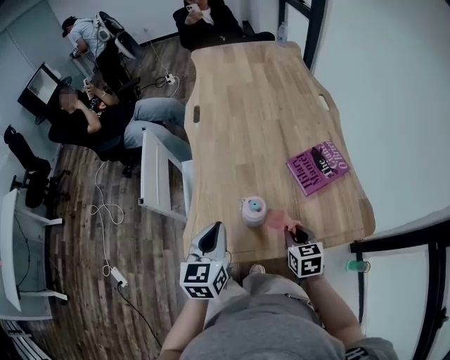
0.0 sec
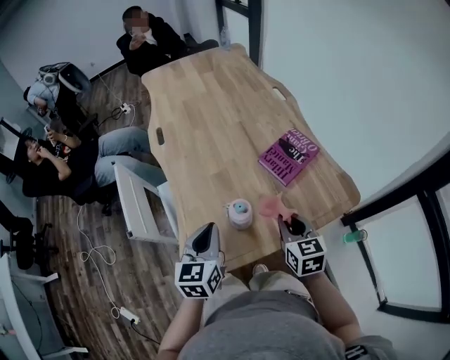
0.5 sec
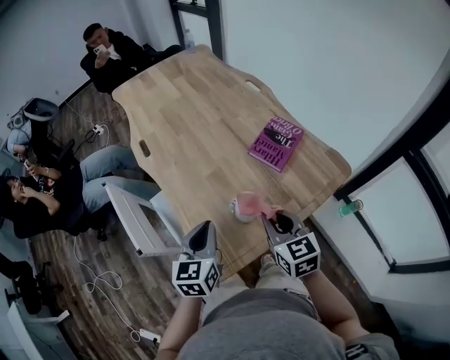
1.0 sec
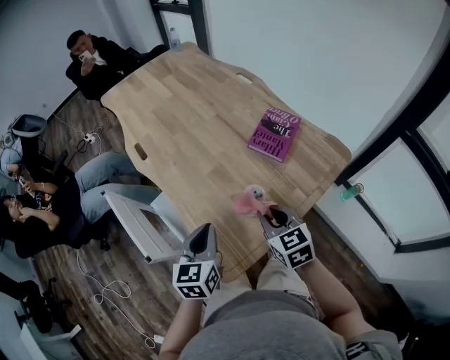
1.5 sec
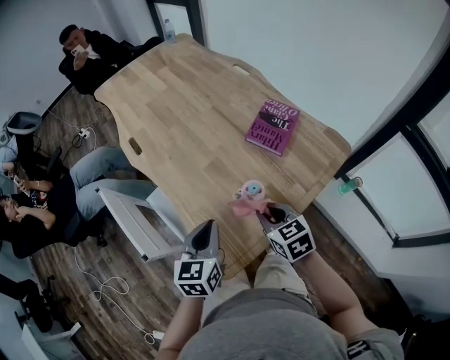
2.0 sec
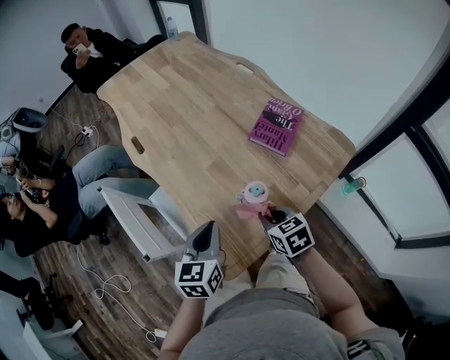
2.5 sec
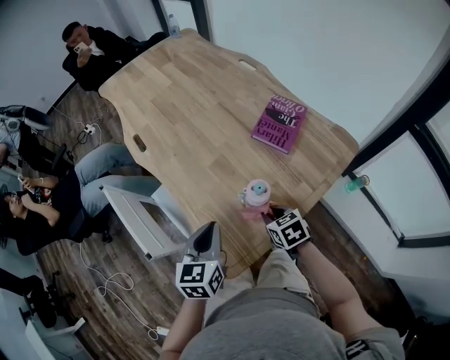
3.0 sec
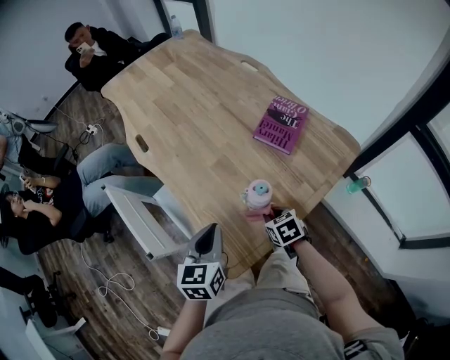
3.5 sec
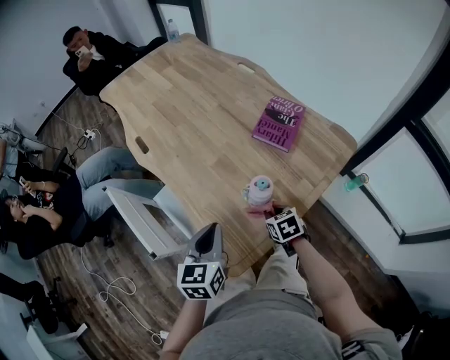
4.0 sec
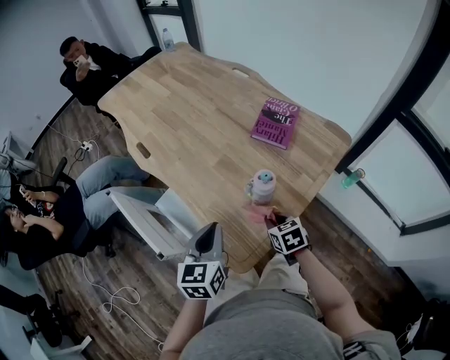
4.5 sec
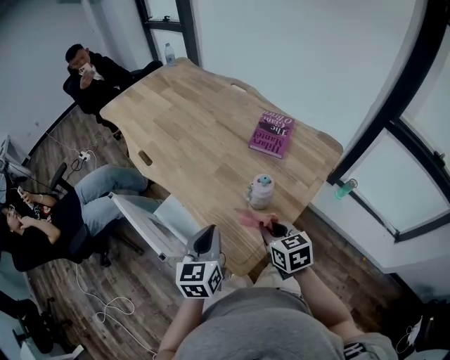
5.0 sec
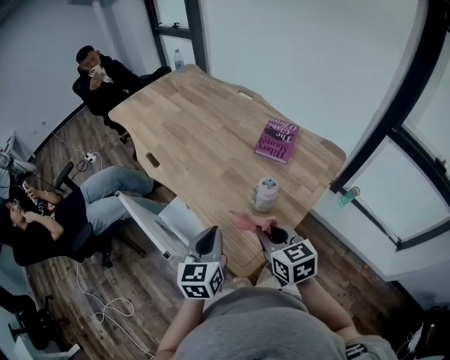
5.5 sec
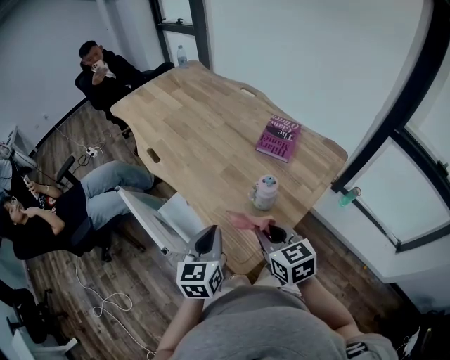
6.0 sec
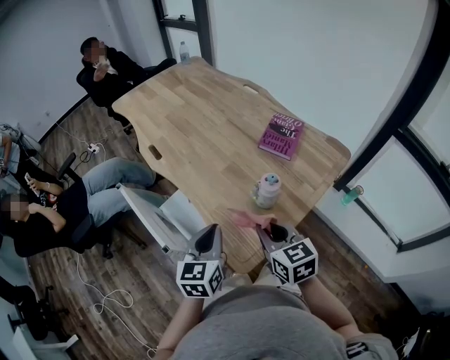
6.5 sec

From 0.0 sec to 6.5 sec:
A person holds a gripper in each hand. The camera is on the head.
From 0.0 sec to 2.0 sec: The right gripper ends up some 15 cm from where it was. The left gripper moves approximately 5 cm, and rotates approximately 30 degrees.
From 2.0 sec to 4.5 sec: The left gripper changes place by about 5 cm, while the right gripper moves downward, approximately 10 cm.
From 4.5 sec to 6.5 sec: The right gripper moves upward and to the left, some 20 cm, and turns by about 30 degrees.

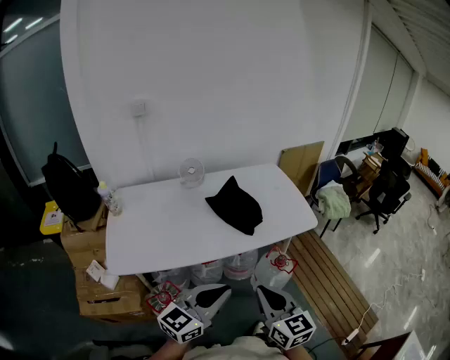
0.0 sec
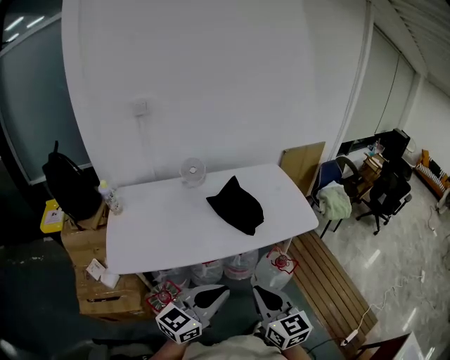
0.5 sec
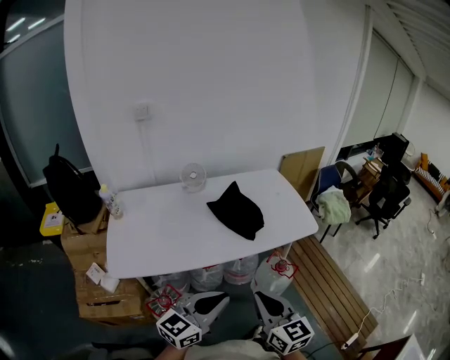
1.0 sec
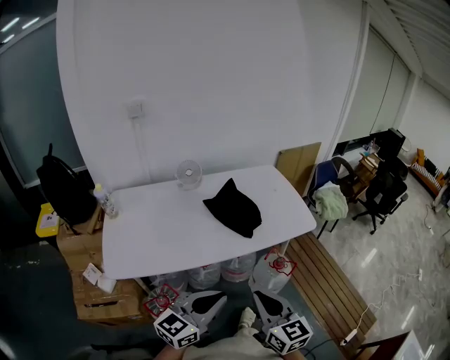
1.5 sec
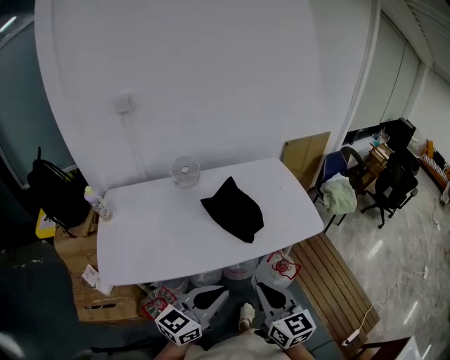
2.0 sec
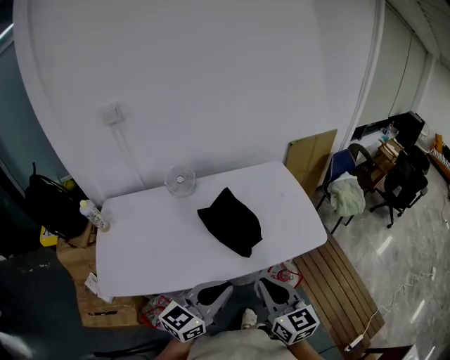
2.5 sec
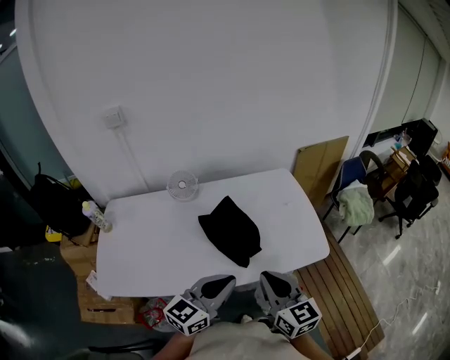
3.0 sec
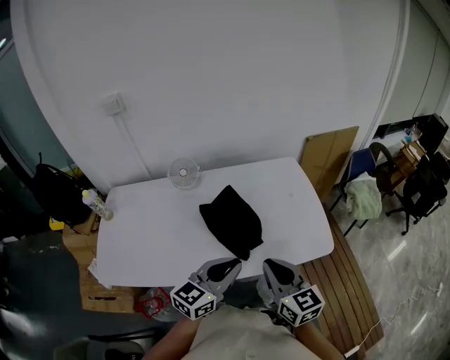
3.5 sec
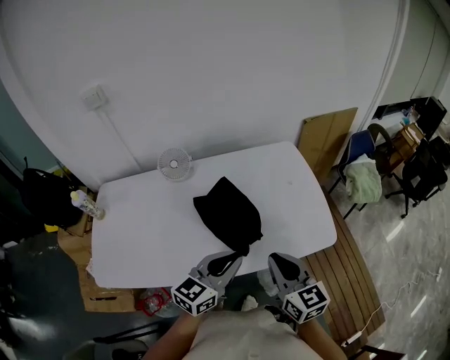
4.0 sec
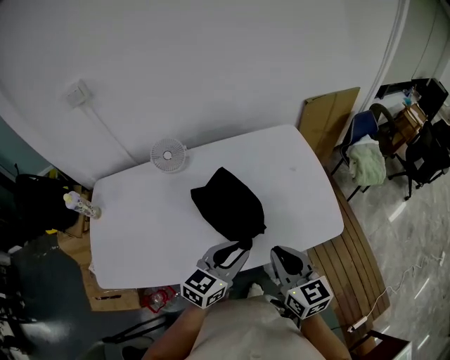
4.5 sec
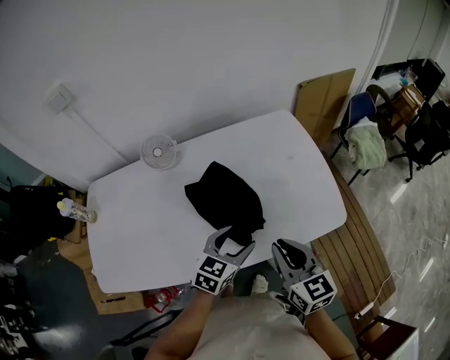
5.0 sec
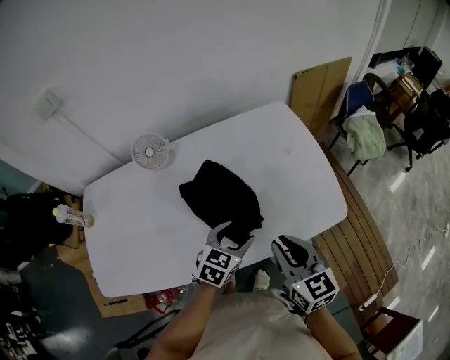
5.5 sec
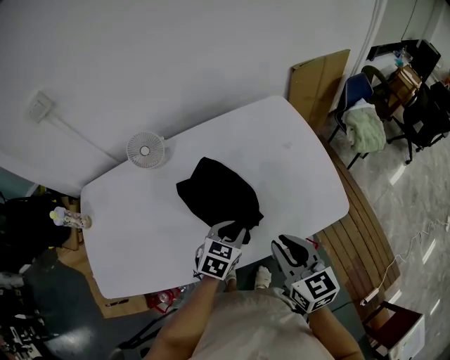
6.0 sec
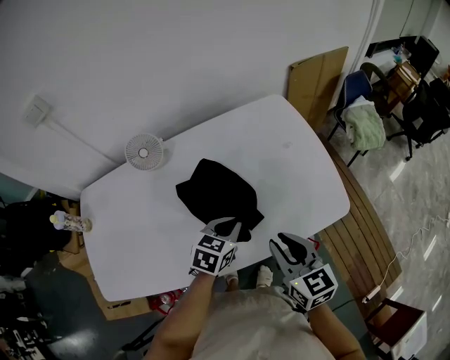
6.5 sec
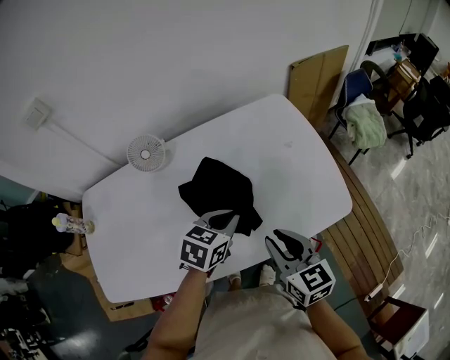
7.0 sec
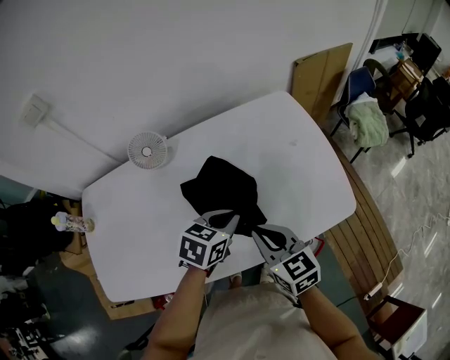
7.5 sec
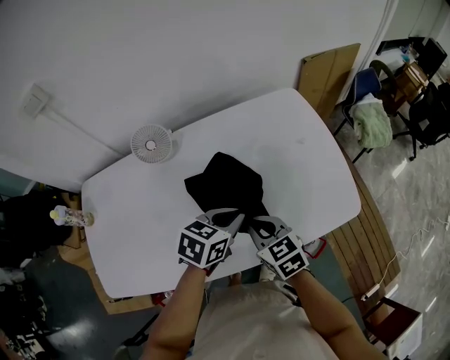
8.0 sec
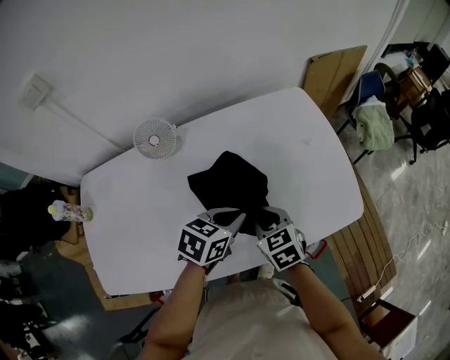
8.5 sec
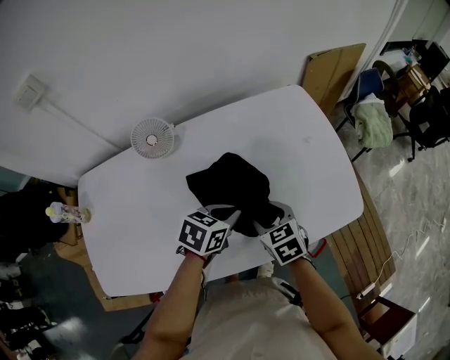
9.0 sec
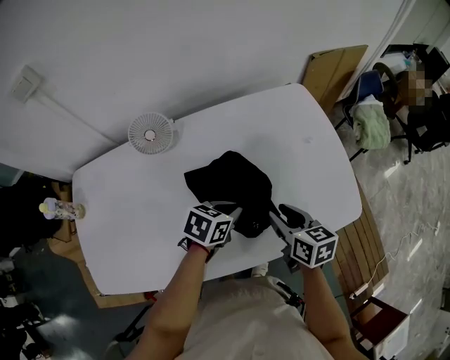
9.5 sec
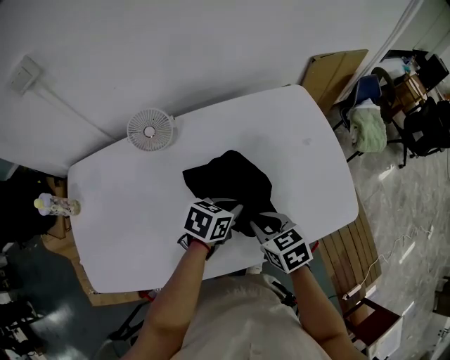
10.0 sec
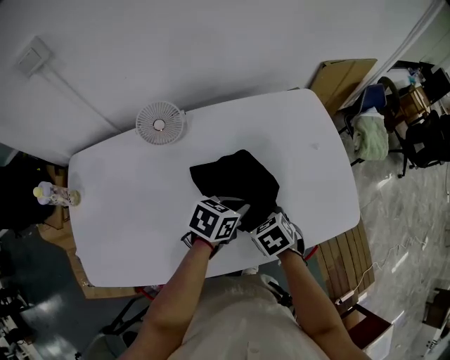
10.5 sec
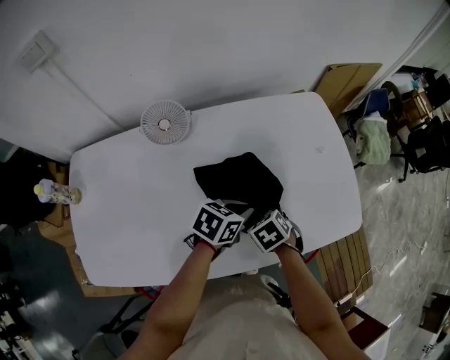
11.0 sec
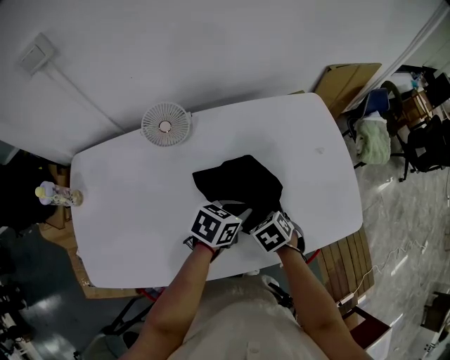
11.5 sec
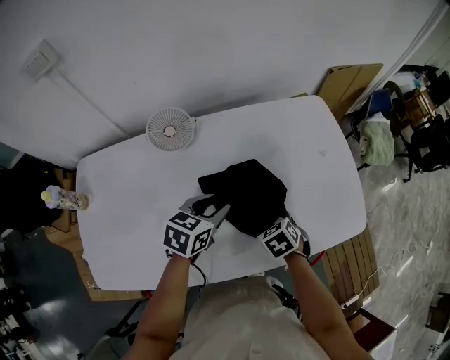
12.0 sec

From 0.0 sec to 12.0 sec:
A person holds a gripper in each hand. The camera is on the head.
From 0.0 sec to 2.0 sec: The grippers both shift forward by about 10 cm.
From 2.0 sec to 4.0 sec: The two grippers go approximately 25 cm forward.
From 4.0 sec to 6.0 sec: The left gripper shifts roughly 20 cm downward and forward, tilts its fingers some 30 degrees downward, and opens, then closes again. Meanwhile the right gripper travels downward by some 5 cm.
From 6.0 sec to 8.0 sec: The left gripper heads upward, covering roughly 5 cm. The right gripper goes approximately 15 cm to the left, downward and forward, and rotates about 20 degrees.
From 8.0 sec to 10.0 sec: The right gripper opens and closes again, while the left gripper moves downward, some 5 cm.
From 10.0 sec to 12.0 sec: The right gripper is displaced downward by some 10 cm, and rotates some 30 degrees, while the left gripper goes roughly 10 cm to the left, and opens up.

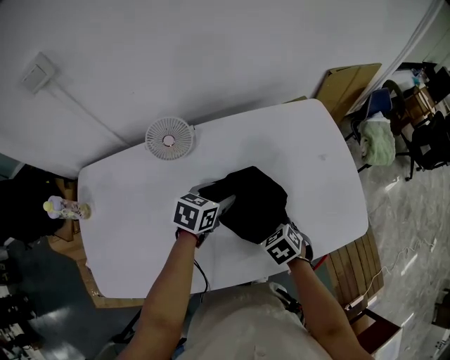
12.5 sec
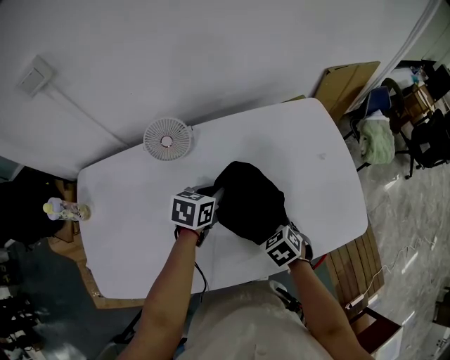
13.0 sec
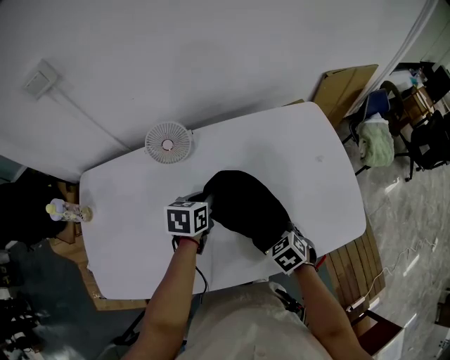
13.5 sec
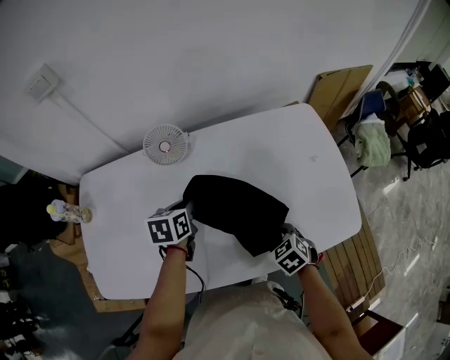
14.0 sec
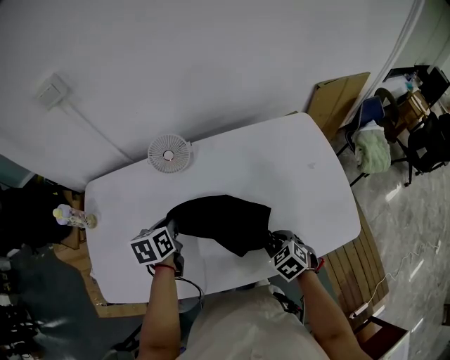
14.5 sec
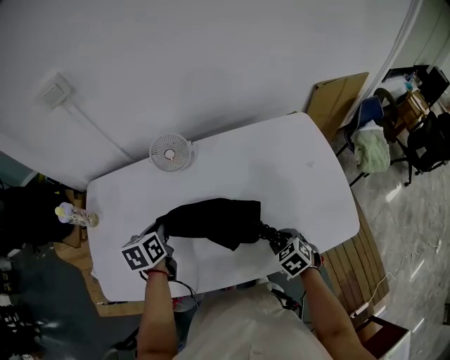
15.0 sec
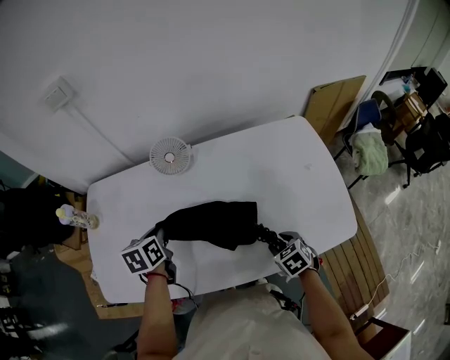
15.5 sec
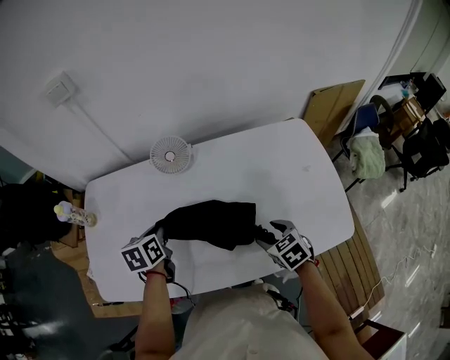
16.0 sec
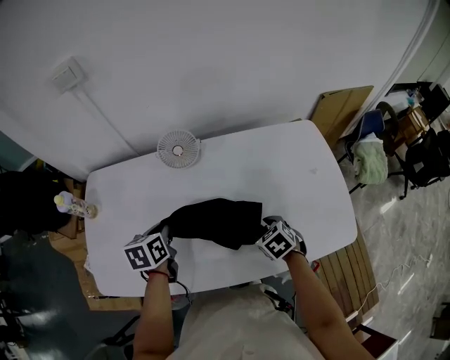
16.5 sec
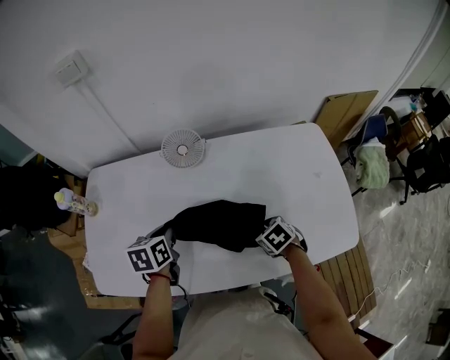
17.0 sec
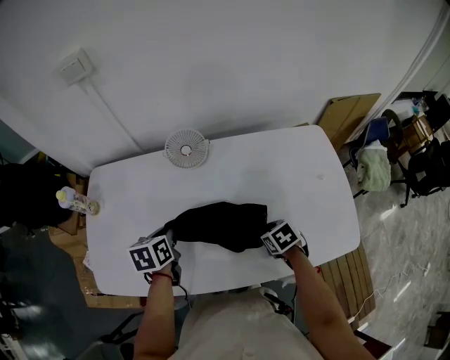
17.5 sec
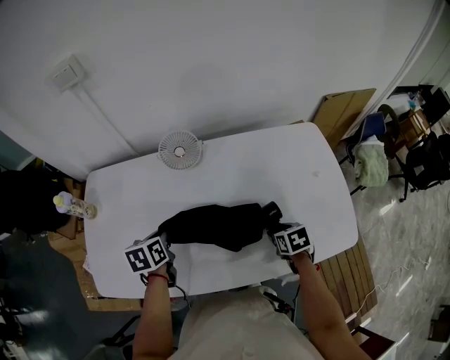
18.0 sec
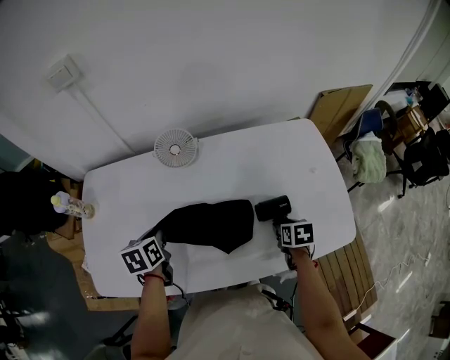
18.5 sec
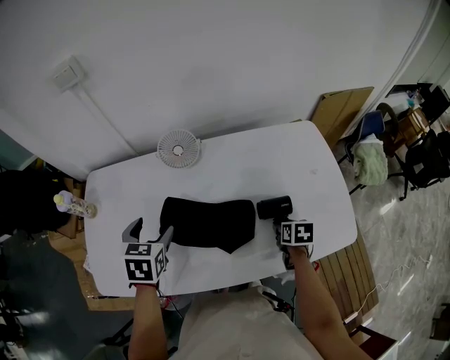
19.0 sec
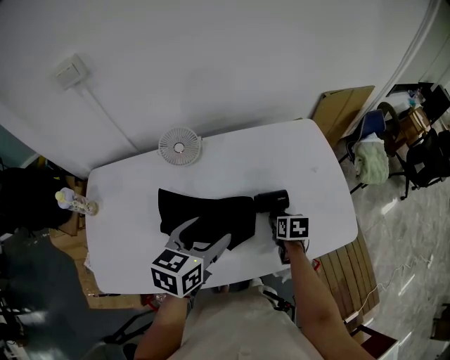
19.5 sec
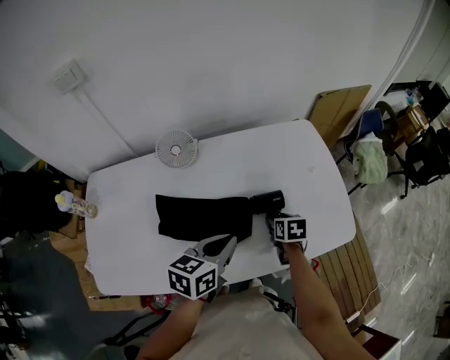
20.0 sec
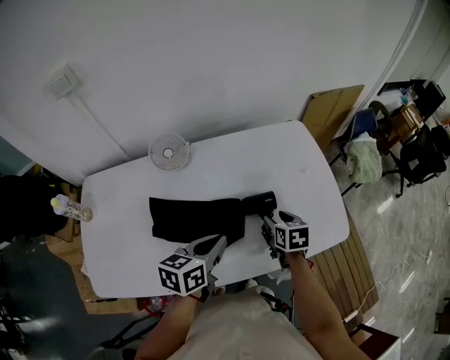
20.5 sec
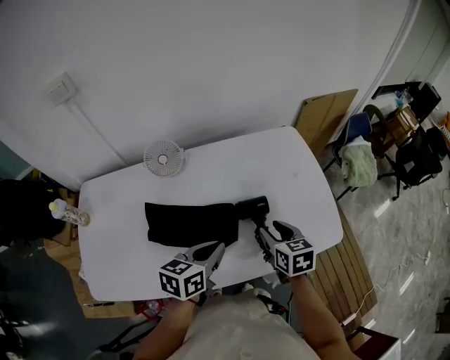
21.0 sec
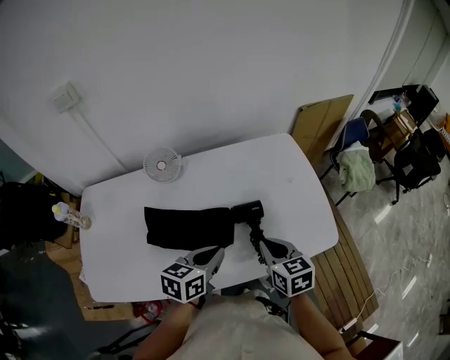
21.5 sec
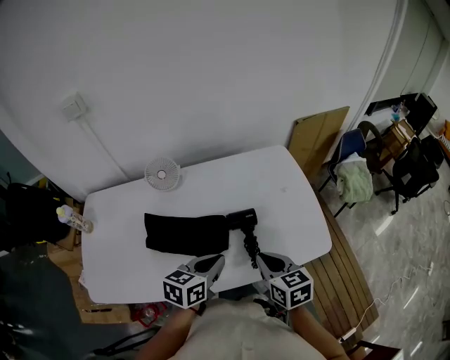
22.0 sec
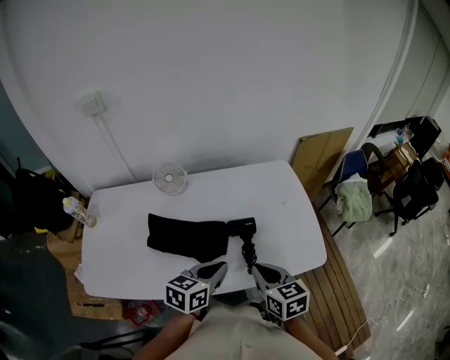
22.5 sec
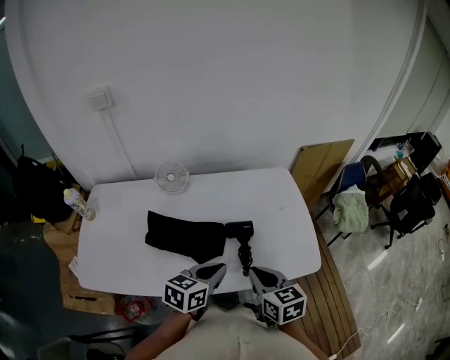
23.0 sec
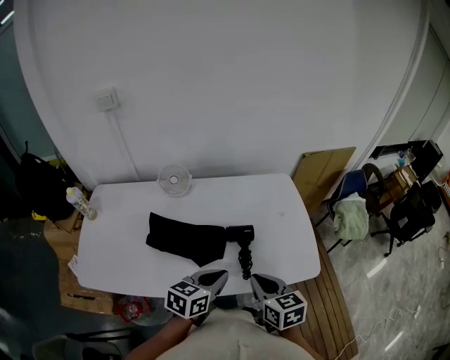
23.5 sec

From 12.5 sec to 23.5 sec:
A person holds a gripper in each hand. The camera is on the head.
From 12.5 sec to 14.5 sec: The left gripper shifts about 15 cm to the left, swivels approximately 40 degrees, and closes. Meanwhile the right gripper shifts by about 5 cm.
From 14.5 sec to 16.0 sec: The right gripper changes place by some 5 cm, and opens.
From 16.0 sec to 18.0 sec: The right gripper travels downward by roughly 5 cm, and turns by approximately 20 degrees.
From 18.0 sec to 20.0 sec: The left gripper ends up about 25 cm from where it was, changes its angle by roughly 40 degrees, and opens, then closes once more.
From 20.0 sec to 21.5 sec: The right gripper travels upward and backward by some 20 cm, changes its angle by roughly 30 degrees, and closes up.
From 21.5 sec to 23.5 sec: The left gripper moves backward and to the right, about 10 cm, while the right gripper goes some 10 cm backward and upward.
